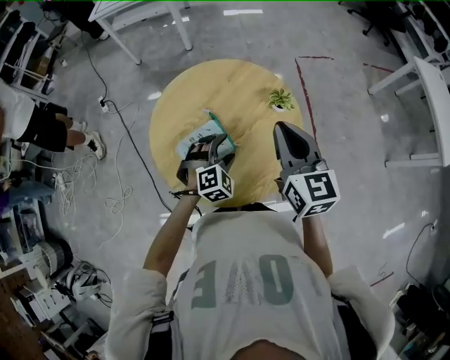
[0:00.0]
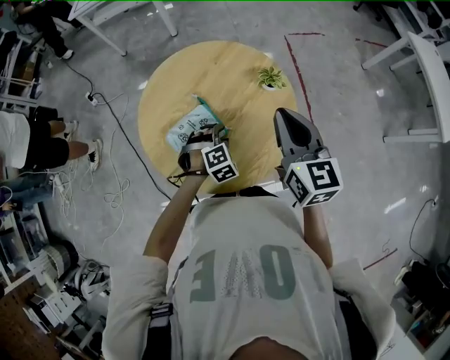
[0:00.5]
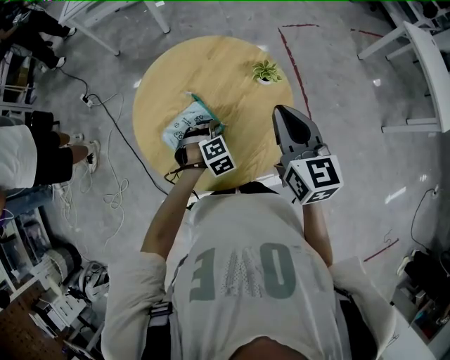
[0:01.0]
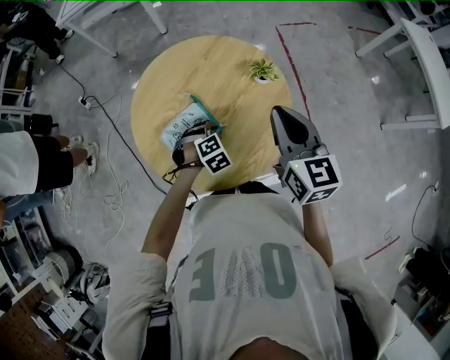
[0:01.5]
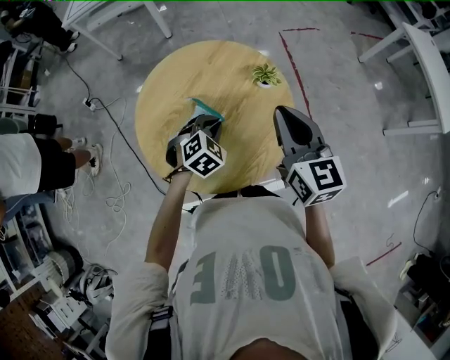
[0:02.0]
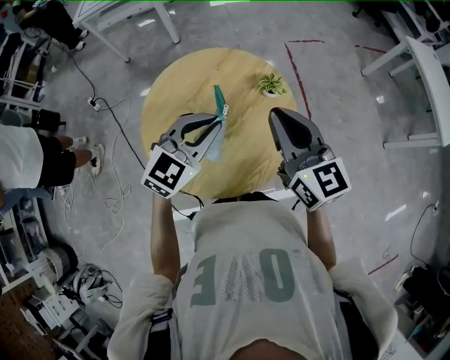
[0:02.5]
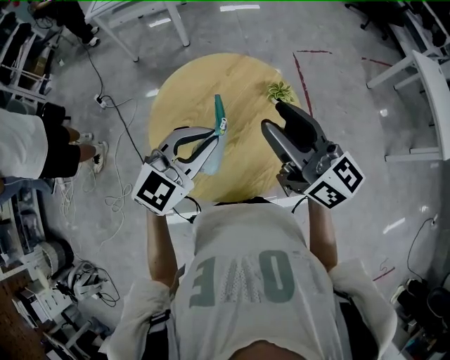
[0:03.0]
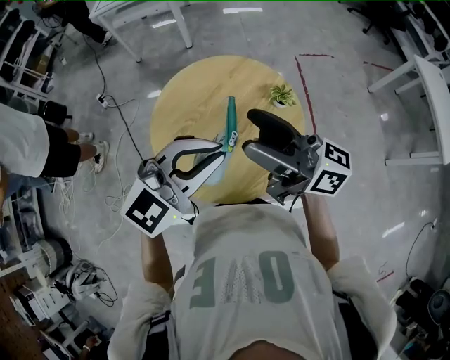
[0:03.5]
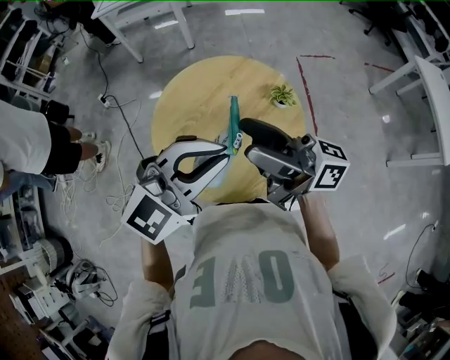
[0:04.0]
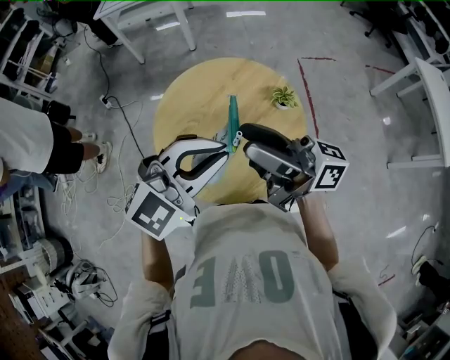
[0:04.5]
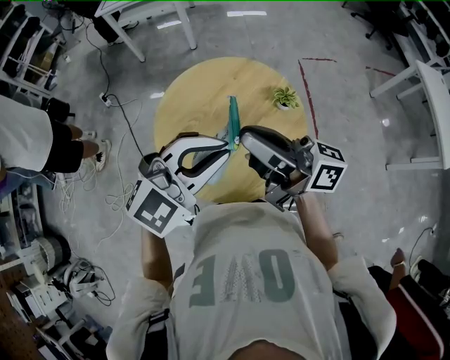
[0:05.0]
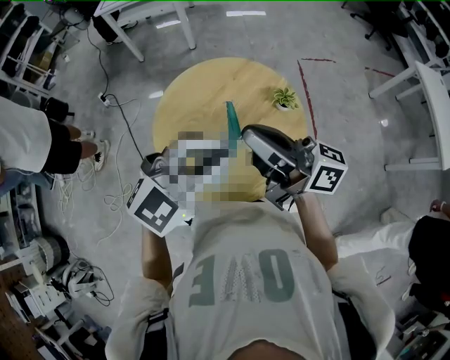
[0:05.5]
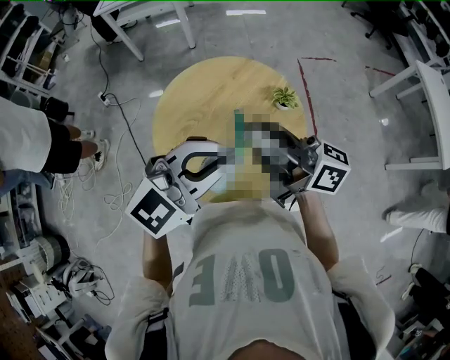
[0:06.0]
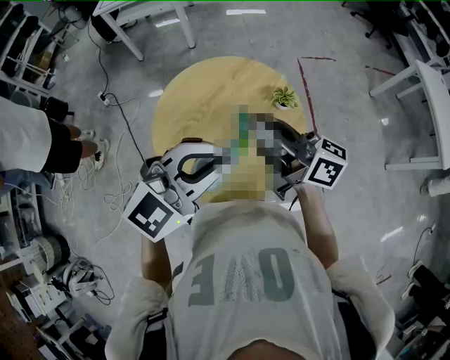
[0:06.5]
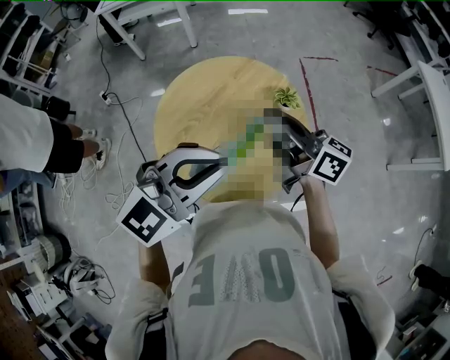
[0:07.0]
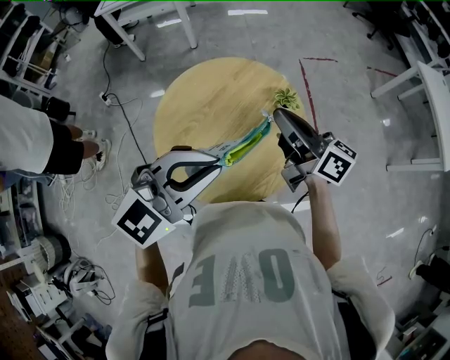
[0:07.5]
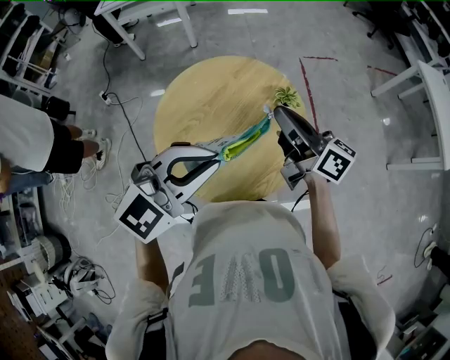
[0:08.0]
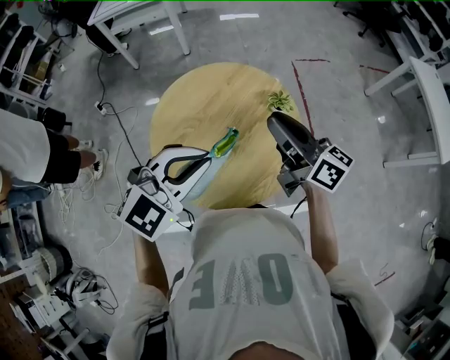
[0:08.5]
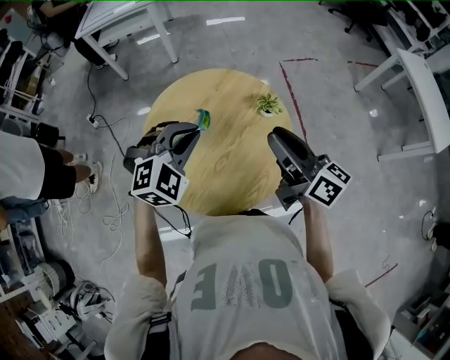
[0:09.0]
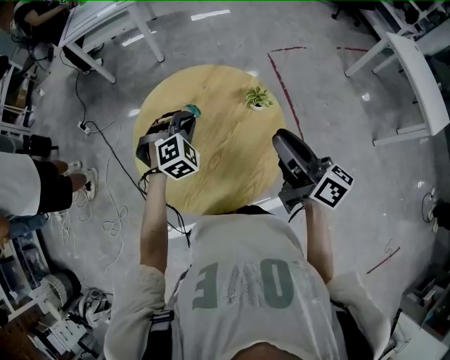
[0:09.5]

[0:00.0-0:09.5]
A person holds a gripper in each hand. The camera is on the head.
0.0 to 2.0 s: The left gripper reaches roughly 10 cm downward, then returns, and closes its fingers.
2.0 to 4.0 s: The right gripper moves to the left and upward, some 15 cm, tilts its fingers some 40 degrees upward, and opens its fingers. The left gripper travels upward by some 25 cm, and angles its fingers upward, by approximately 40 degrees.
4.0 to 5.5 s: The right gripper closes up.
5.5 to 7.5 s: The right gripper travels forward, downward and to the right by roughly 10 cm, and swivels roughly 20 degrees.
7.5 to 9.5 s: The left gripper heads downward and forward, covering roughly 30 cm, and rotates about 50 degrees. The right gripper moves to the right, approximately 5 cm.

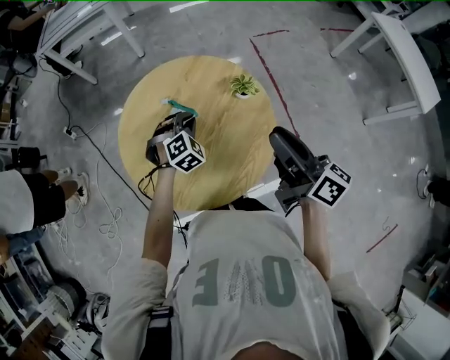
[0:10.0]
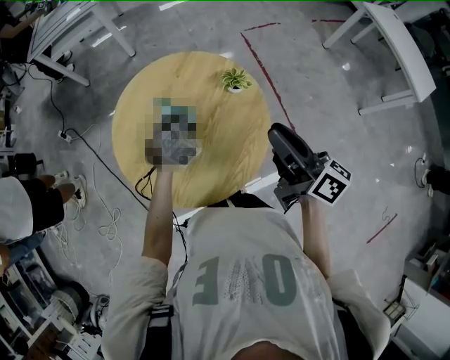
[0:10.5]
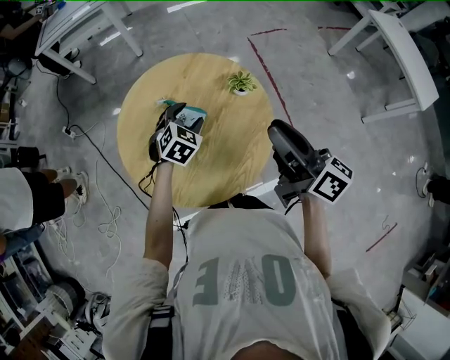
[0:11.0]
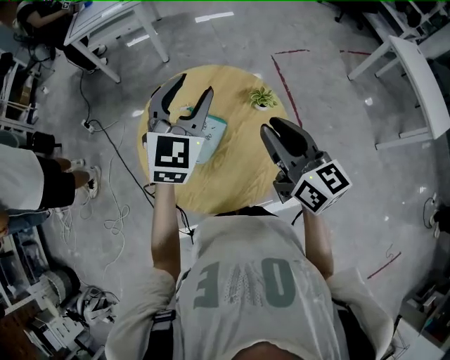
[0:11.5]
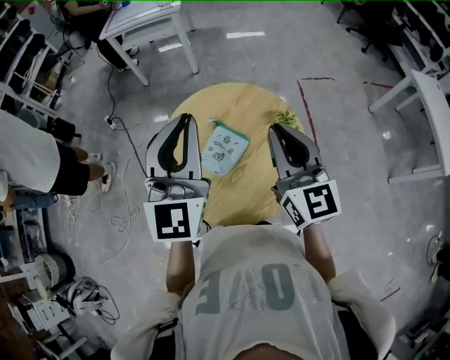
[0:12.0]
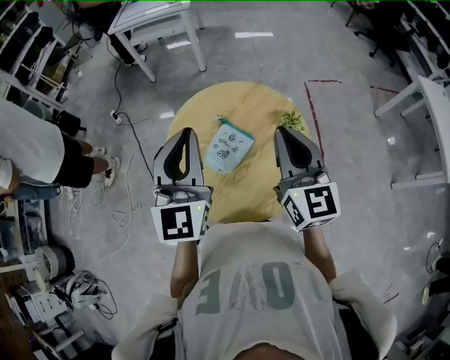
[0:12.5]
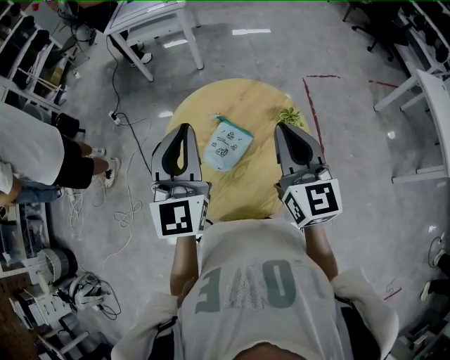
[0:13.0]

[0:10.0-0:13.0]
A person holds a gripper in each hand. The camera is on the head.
10.0 to 11.5 s: The left gripper goes approximately 30 cm upward, tilts its fingers some 40 degrees upward, and opens up, while the right gripper shifts by approximately 5 cm, and swivels about 30 degrees.
11.5 to 13.0 s: The left gripper travels to the left and backward by about 15 cm, swivels some 30 degrees, and closes its fingers, while the right gripper moves some 5 cm.

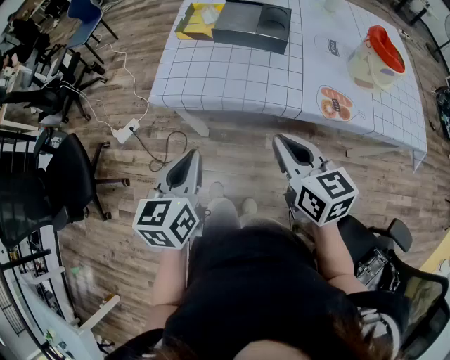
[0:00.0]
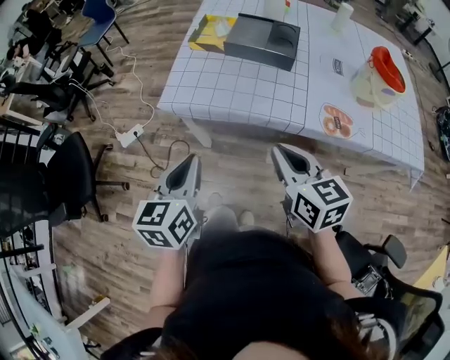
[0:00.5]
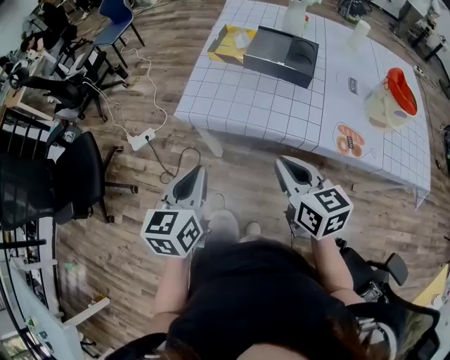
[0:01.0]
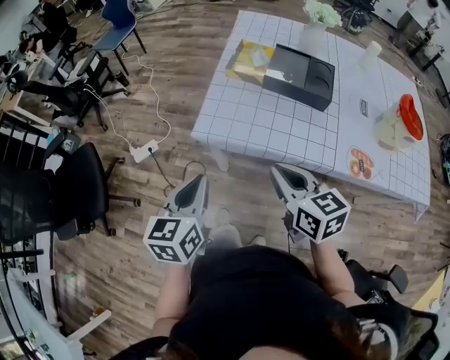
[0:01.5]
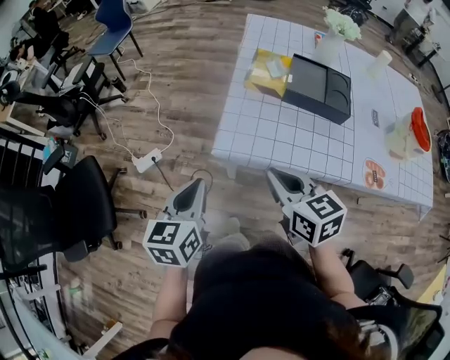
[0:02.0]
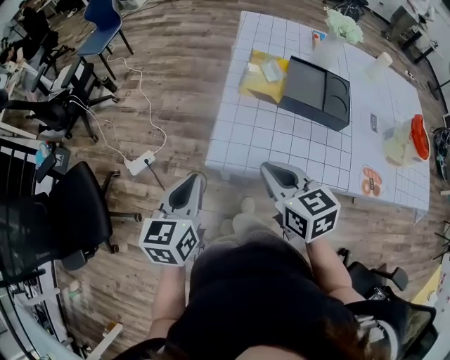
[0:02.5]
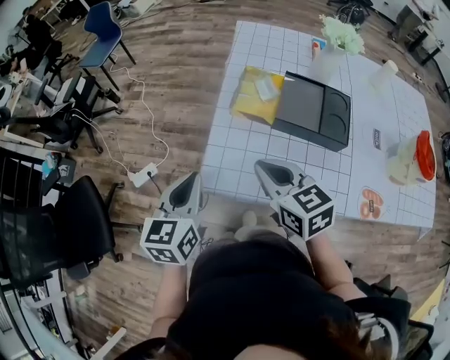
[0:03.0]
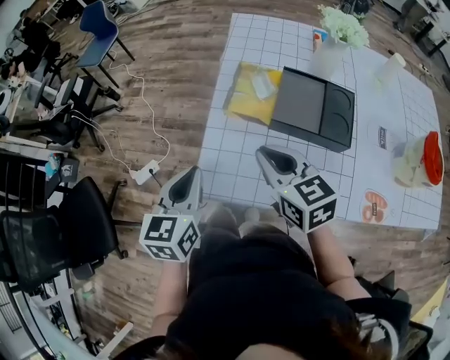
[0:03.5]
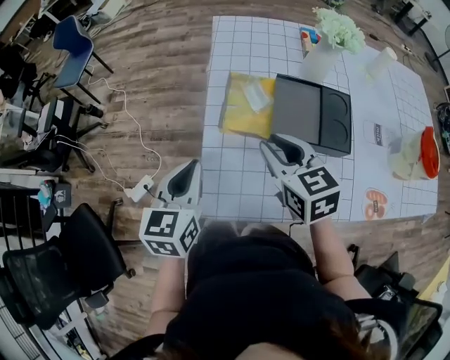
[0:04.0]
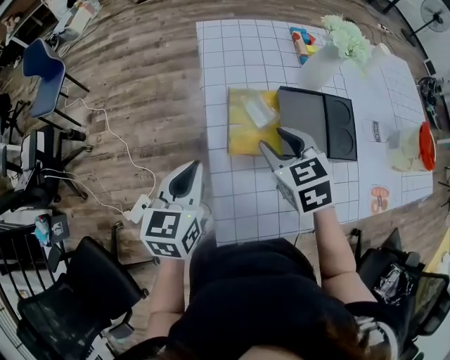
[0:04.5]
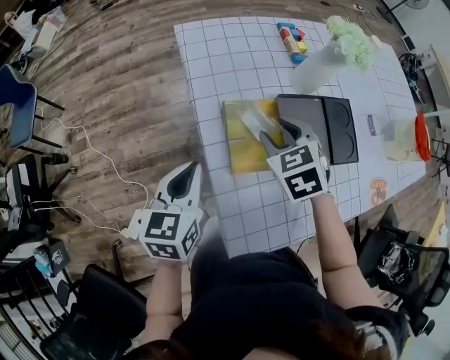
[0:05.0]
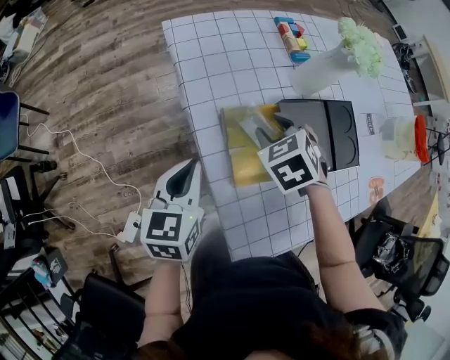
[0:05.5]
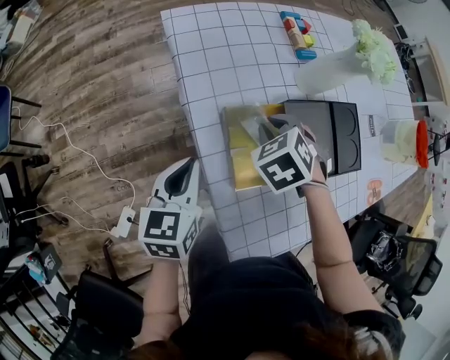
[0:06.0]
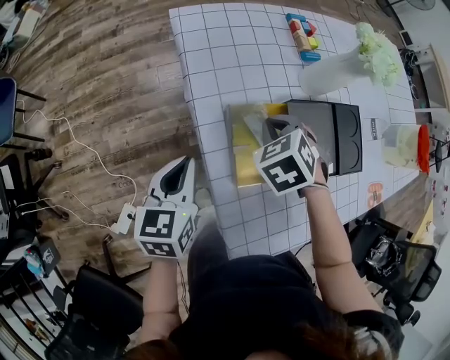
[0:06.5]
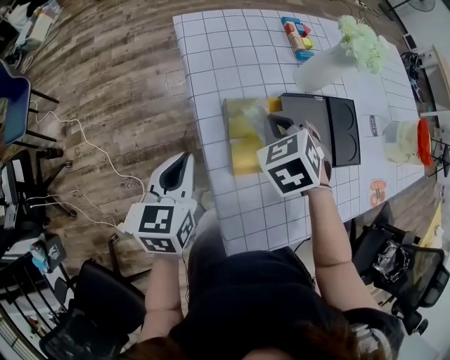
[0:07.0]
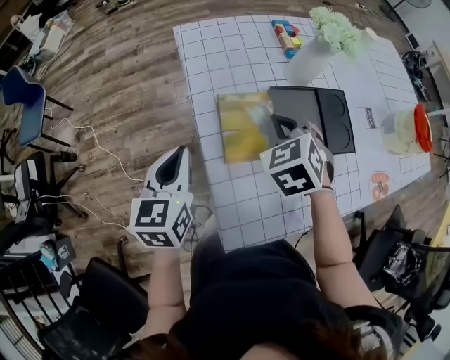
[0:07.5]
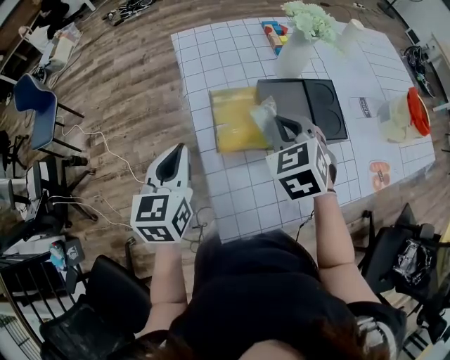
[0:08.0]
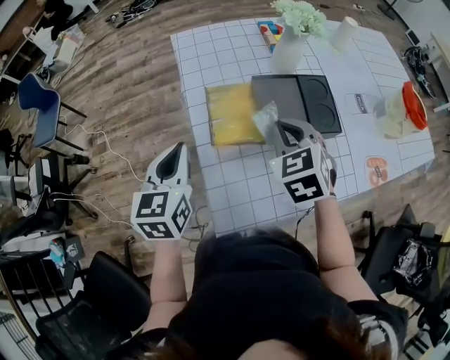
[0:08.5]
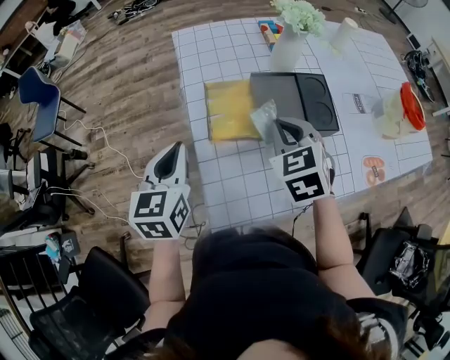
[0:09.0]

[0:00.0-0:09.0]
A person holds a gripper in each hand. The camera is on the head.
0.0 to 2.0 s: Both grippers travel together to the left and forward, roughly 25 cm.
2.0 to 4.5 s: The two grippers go approximately 35 cm forward. The right gripper rotates approximately 30 degrees, and opens its fingers.
4.5 to 7.0 s: The right gripper moves about 10 cm, swivels some 30 degrees, and closes. The left gripper changes place by approximately 10 cm.
7.0 to 9.0 s: The right gripper shifts about 15 cm backward, to the right and upward. Meanwhile the left gripper is displaced backward, upward and to the right by some 15 cm.

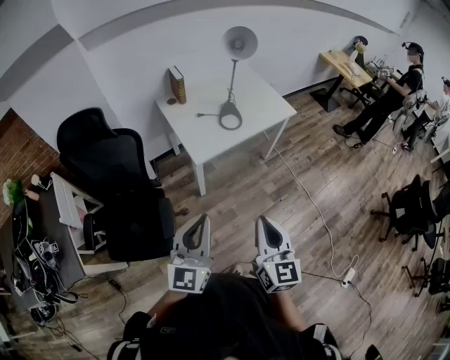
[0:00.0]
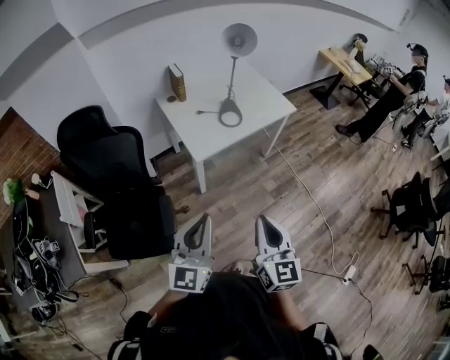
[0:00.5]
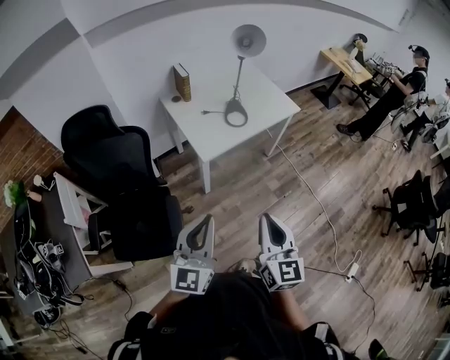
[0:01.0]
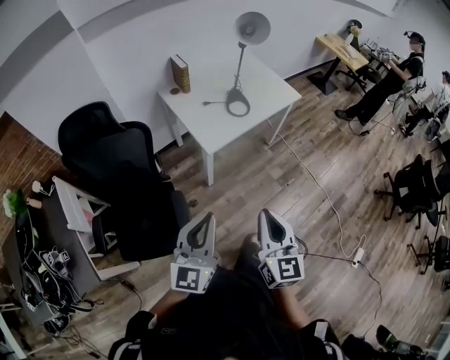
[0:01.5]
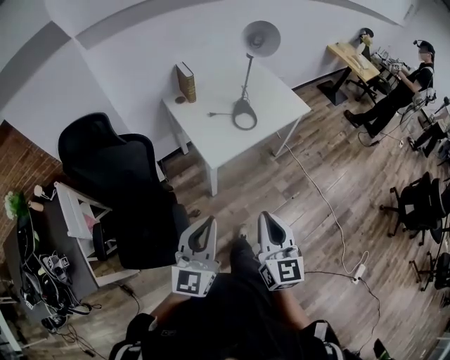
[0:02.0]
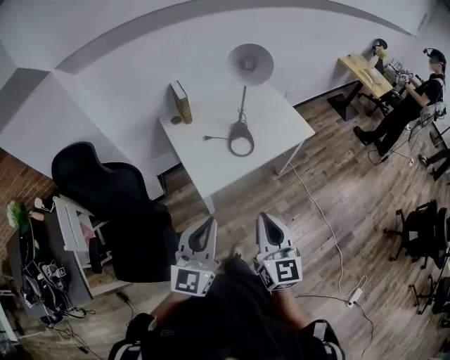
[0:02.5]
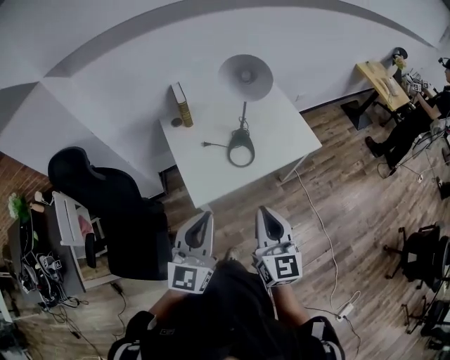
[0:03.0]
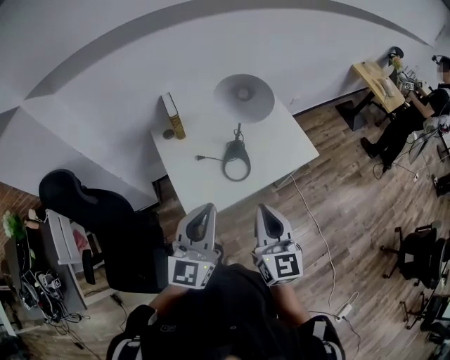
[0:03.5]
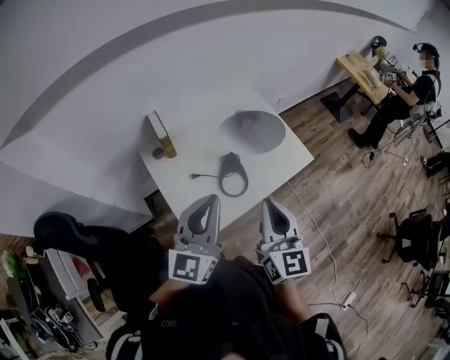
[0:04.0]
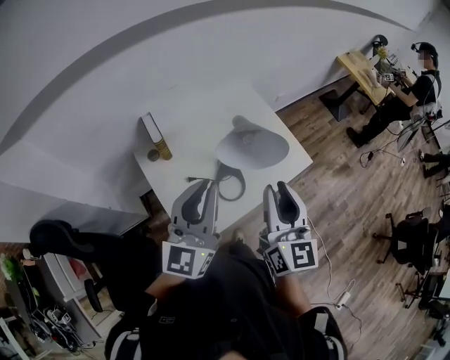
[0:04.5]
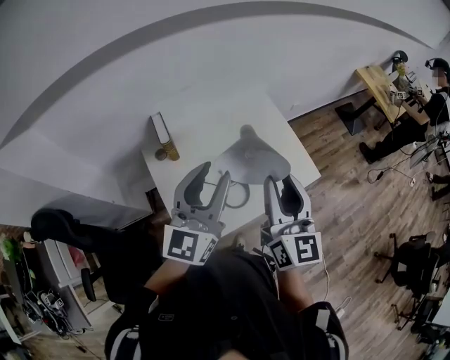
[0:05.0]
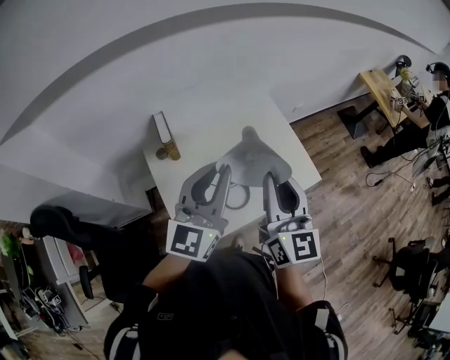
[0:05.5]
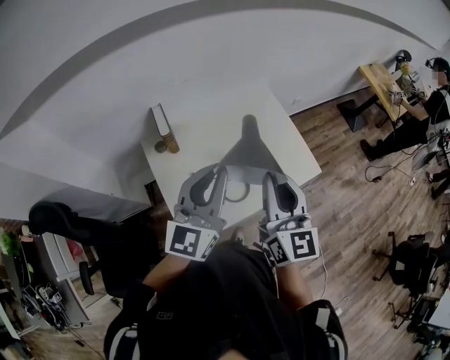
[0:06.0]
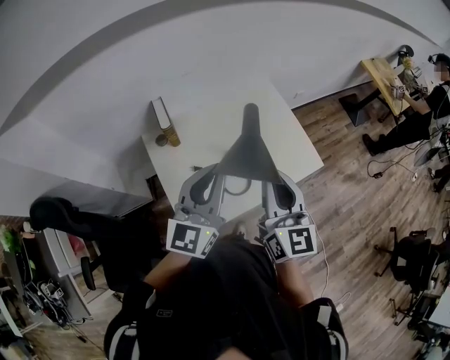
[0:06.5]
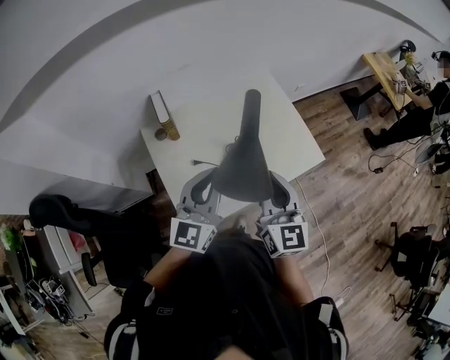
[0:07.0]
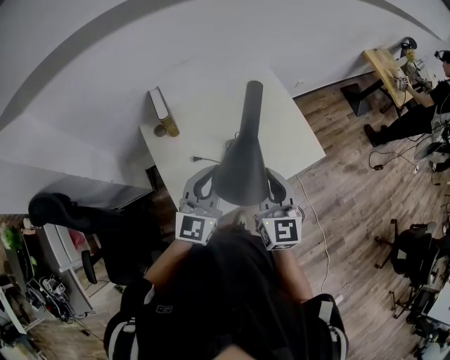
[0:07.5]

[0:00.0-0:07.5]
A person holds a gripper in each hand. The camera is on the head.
0.0 to 2.0 s: The two grippers go roughly 10 cm to the left and forward.
2.0 to 4.0 s: Both grippers are carried forward, some 40 cm.
4.0 to 5.5 s: The right gripper is displaced forward and upward by about 15 cm, while the left gripper goes approximately 10 cm forward, and opens and closes again.
5.5 to 7.5 s: Both grippers travel together downward, approximately 10 cm.
